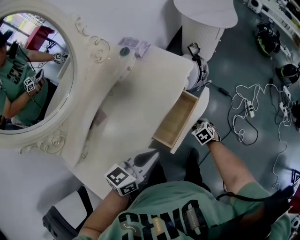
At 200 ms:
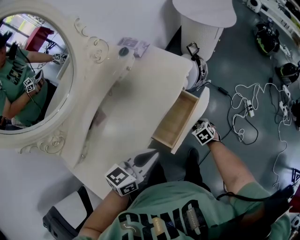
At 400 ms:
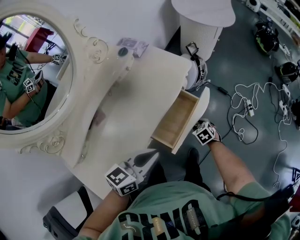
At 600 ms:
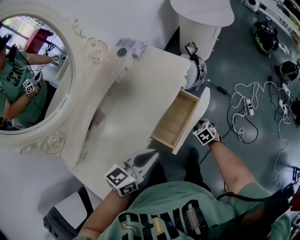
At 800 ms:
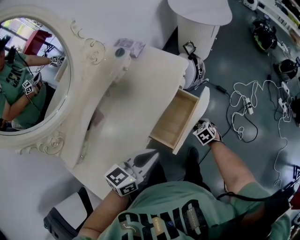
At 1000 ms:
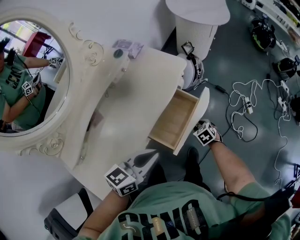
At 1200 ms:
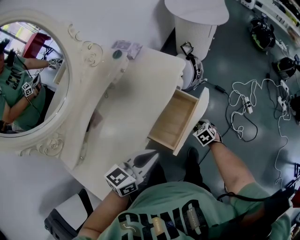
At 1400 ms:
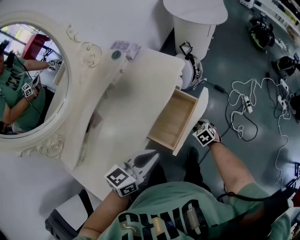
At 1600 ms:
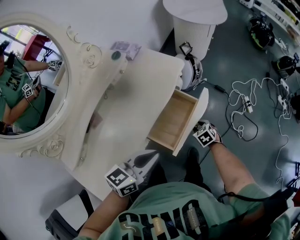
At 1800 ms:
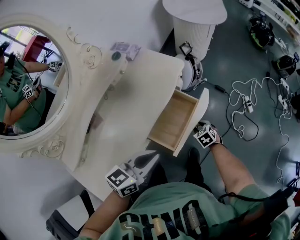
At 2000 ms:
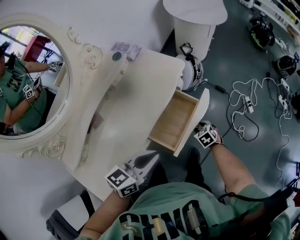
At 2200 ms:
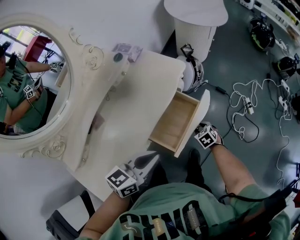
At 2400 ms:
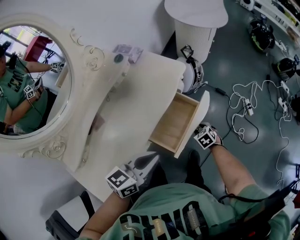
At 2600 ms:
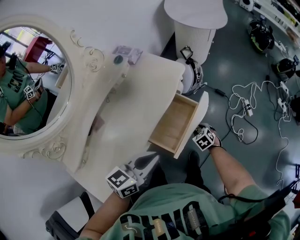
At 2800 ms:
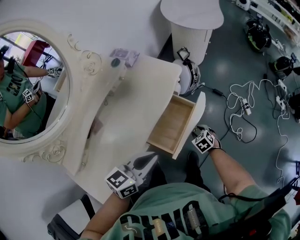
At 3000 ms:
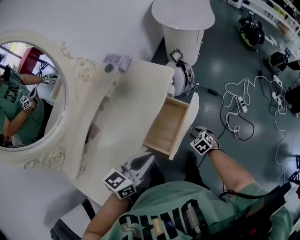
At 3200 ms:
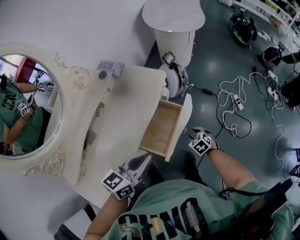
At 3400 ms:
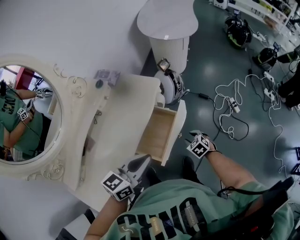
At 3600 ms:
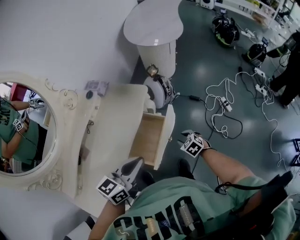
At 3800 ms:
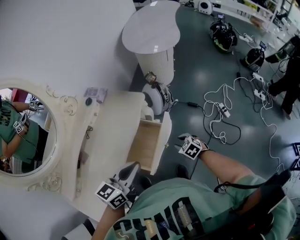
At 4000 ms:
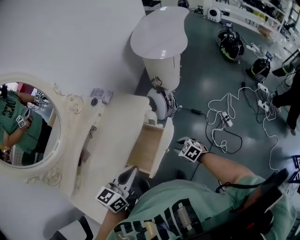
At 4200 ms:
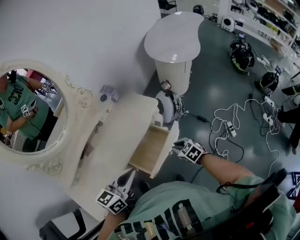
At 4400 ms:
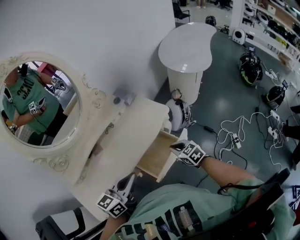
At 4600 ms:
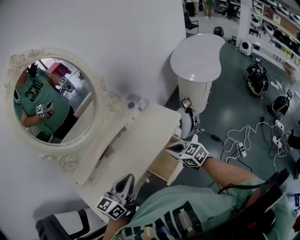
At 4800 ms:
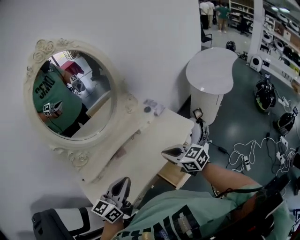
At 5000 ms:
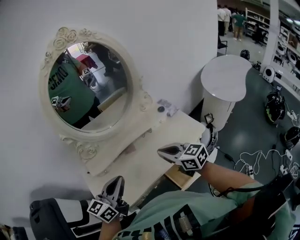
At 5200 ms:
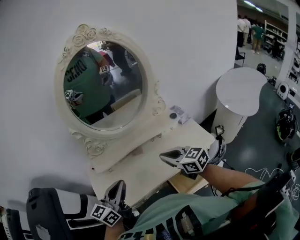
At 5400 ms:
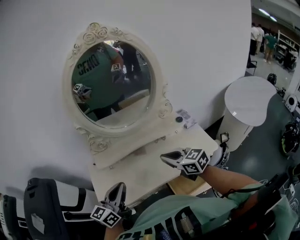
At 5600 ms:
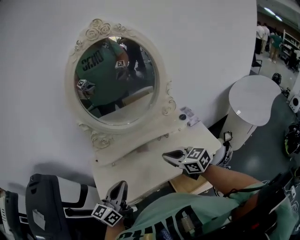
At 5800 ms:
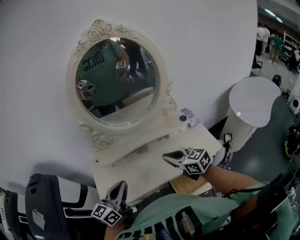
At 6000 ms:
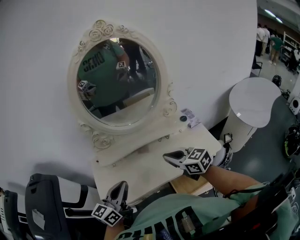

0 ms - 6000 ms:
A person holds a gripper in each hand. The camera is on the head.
0 ms - 1600 ms: There are only small adjustments of the grippers.
1600 ms - 3000 ms: There are only small adjustments of the grippers.
3000 ms - 4400 ms: The right gripper moves upward, roughly 20 cm, changes its angle by some 30 degrees, and closes its fingers. Meanwhile the left gripper shifts some 10 cm upward, and swivels some 20 degrees.
4400 ms - 6000 ms: The right gripper shifts by roughly 35 cm, and swivels approximately 40 degrees. The left gripper moves approximately 25 cm, and swivels roughly 40 degrees.

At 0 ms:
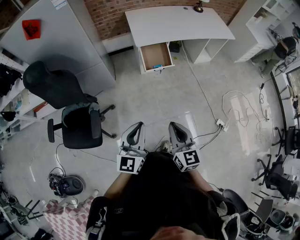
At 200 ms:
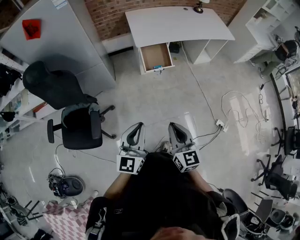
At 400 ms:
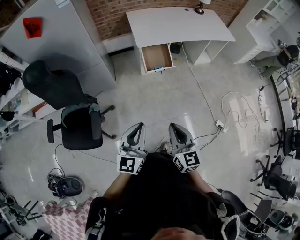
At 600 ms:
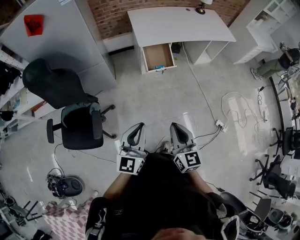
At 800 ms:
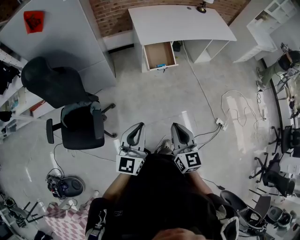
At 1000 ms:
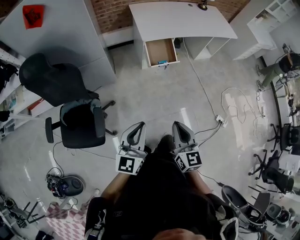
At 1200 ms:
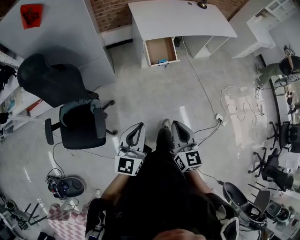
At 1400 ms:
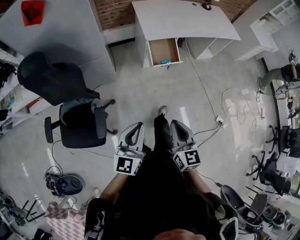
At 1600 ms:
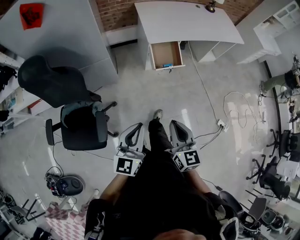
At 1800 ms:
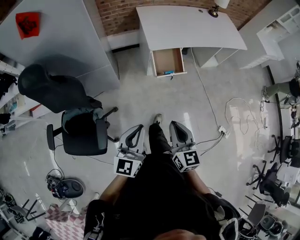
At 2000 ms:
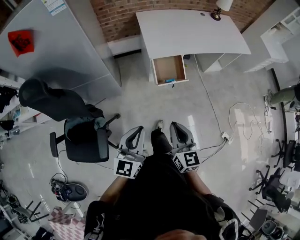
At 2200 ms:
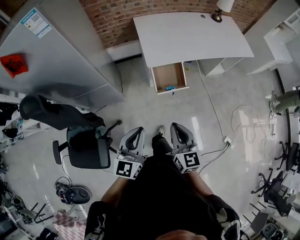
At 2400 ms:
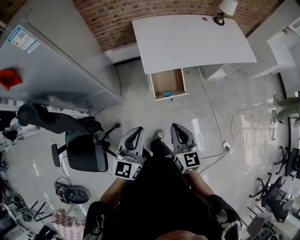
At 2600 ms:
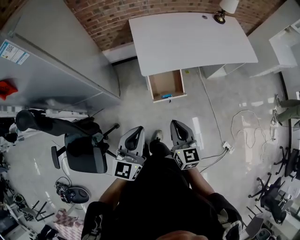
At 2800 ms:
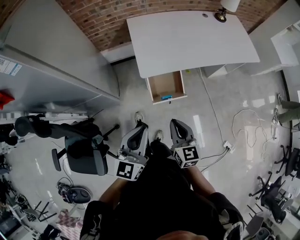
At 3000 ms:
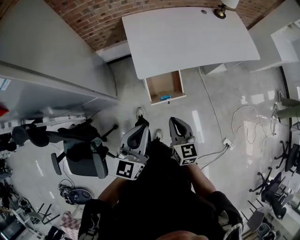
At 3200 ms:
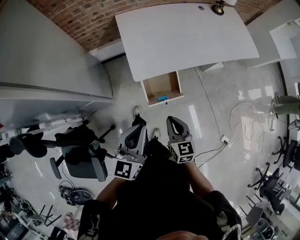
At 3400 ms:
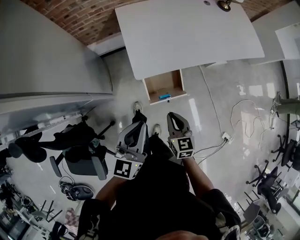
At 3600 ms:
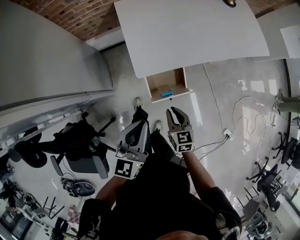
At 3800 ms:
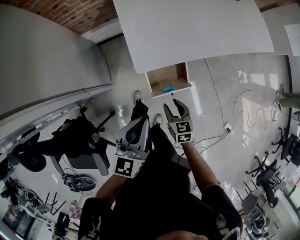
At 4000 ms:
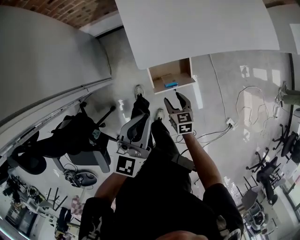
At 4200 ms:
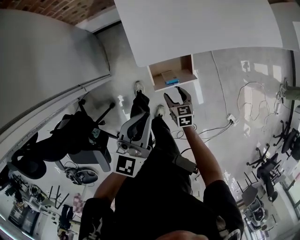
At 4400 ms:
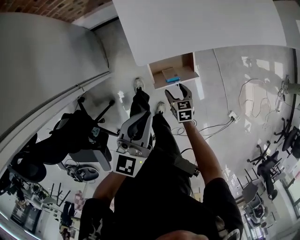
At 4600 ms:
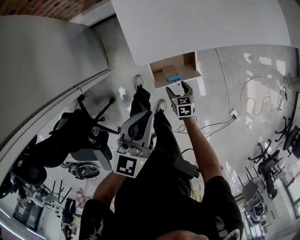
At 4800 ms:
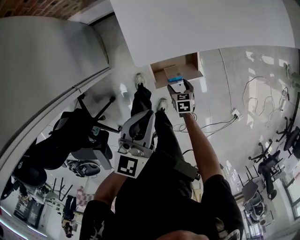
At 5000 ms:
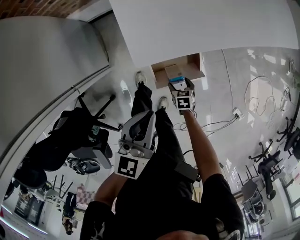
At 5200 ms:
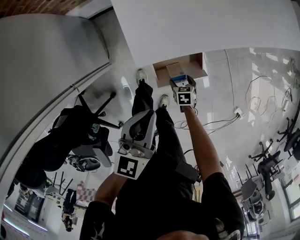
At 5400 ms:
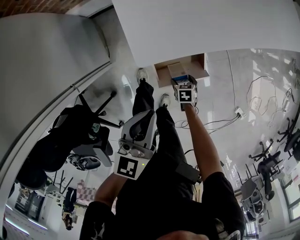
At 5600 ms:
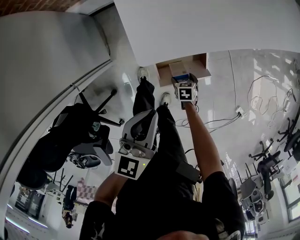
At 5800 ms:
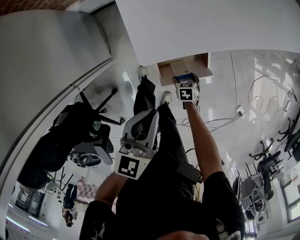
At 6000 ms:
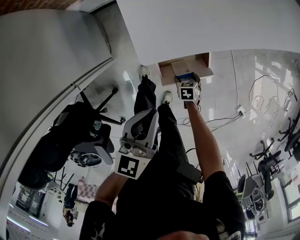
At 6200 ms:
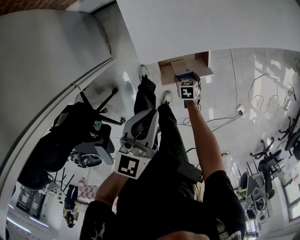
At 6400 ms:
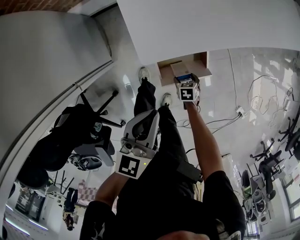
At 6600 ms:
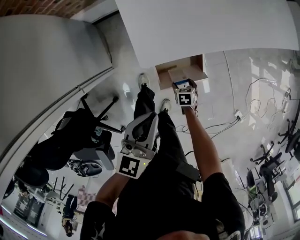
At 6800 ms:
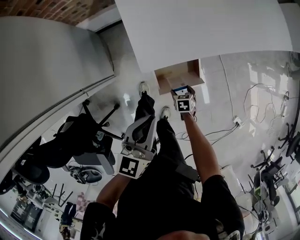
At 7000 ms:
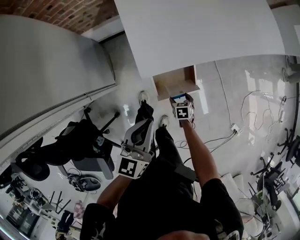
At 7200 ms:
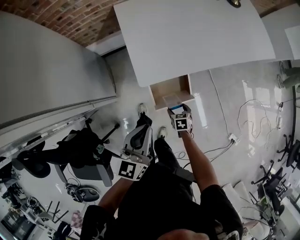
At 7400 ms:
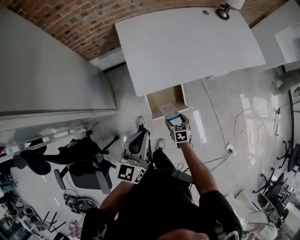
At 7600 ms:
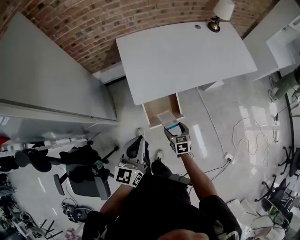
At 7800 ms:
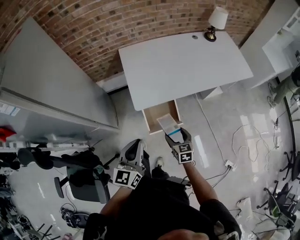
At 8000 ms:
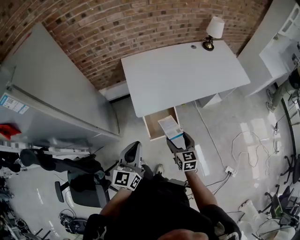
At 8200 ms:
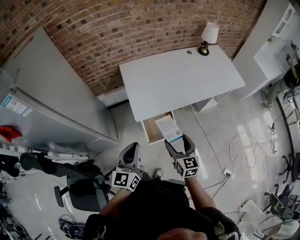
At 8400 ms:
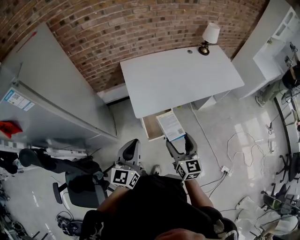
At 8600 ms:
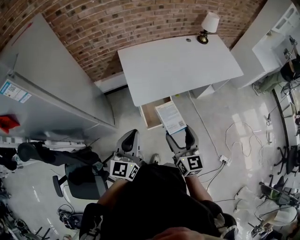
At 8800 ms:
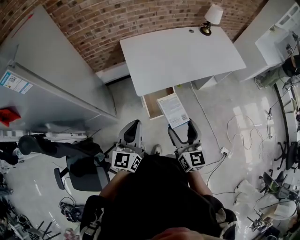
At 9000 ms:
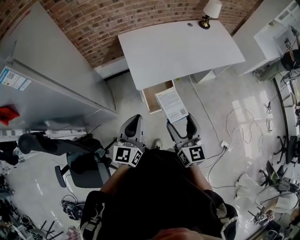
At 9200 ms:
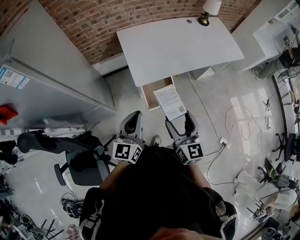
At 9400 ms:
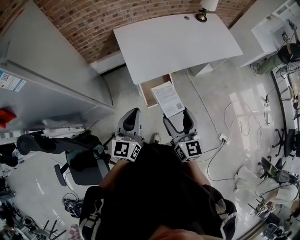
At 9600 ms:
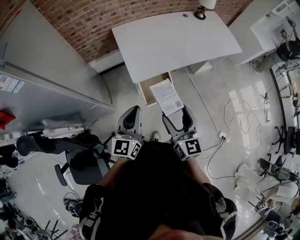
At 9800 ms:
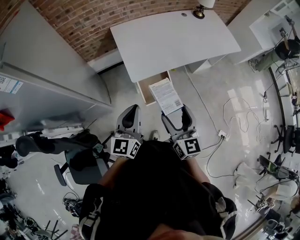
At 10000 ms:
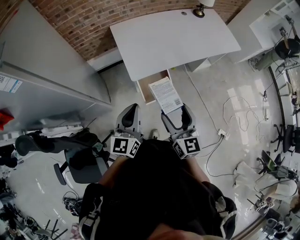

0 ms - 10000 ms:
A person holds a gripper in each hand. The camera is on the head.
0 ms - 1400 ms: The two grippers go roughly 10 cm to the left.
1400 ms - 2800 ms: Both grippers travel together forward, roughly 35 cm.
2800 ms - 4200 ms: The left gripper goes roughly 20 cm forward and downward. The right gripper heads downward and forward, covering approximately 35 cm, angles its fingers downward, by roughly 30 degrees, and opens up.
4200 ms - 5800 ms: The right gripper moves downward, roughly 20 cm, and rotates about 30 degrees; the left gripper is displaced downward by some 10 cm.
5800 ms - 7200 ms: Both grippers travel together upward, some 15 cm.
7200 ms - 8600 ms: The right gripper shifts roughly 50 cm upward, and tips its fingers upward by approximately 50 degrees. Meanwhile the left gripper heads upward and backward, covering some 20 cm.
8600 ms - 10000 ms: The grippers make only small movements.

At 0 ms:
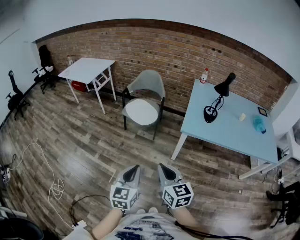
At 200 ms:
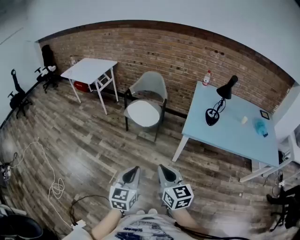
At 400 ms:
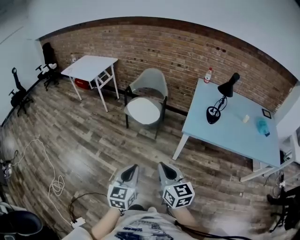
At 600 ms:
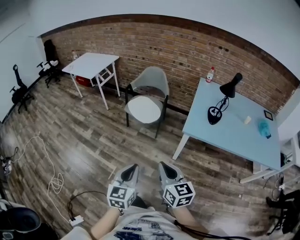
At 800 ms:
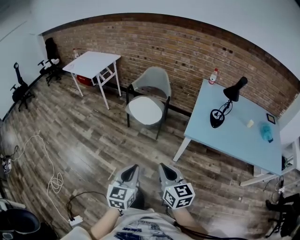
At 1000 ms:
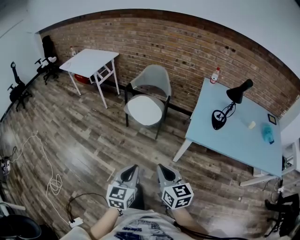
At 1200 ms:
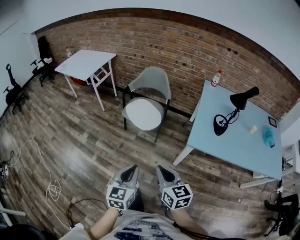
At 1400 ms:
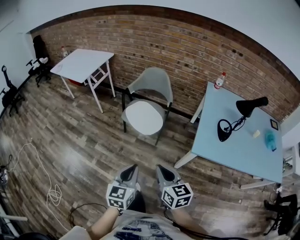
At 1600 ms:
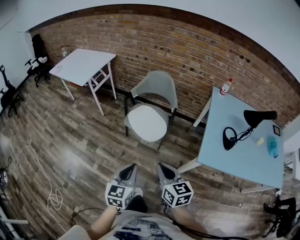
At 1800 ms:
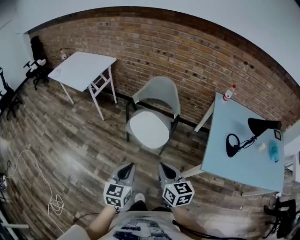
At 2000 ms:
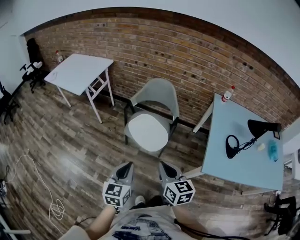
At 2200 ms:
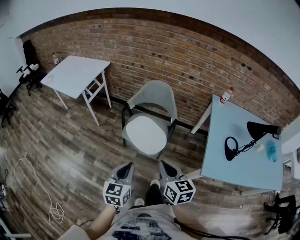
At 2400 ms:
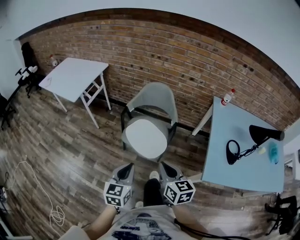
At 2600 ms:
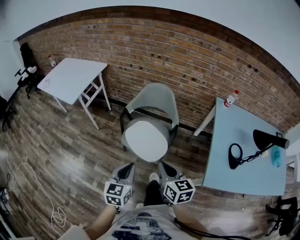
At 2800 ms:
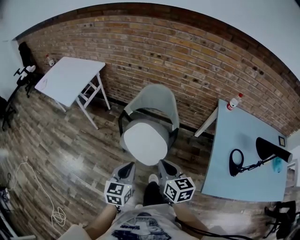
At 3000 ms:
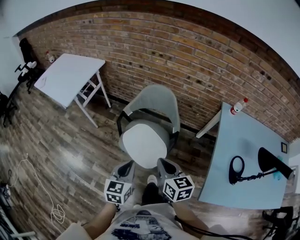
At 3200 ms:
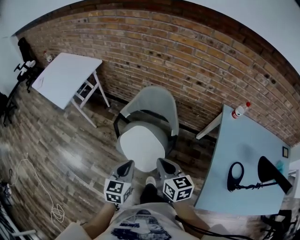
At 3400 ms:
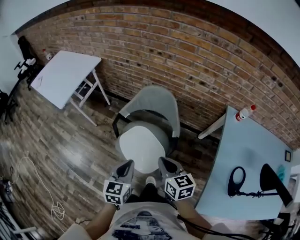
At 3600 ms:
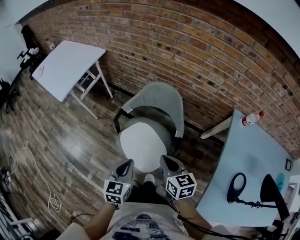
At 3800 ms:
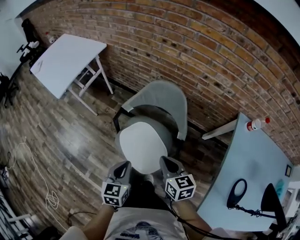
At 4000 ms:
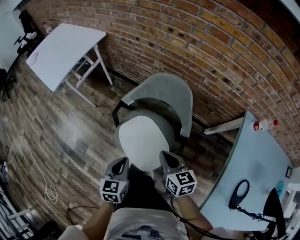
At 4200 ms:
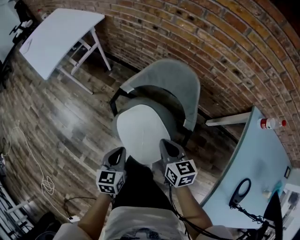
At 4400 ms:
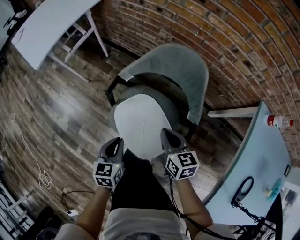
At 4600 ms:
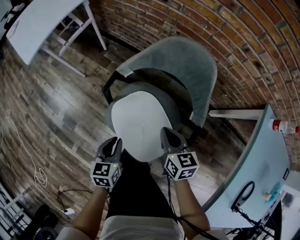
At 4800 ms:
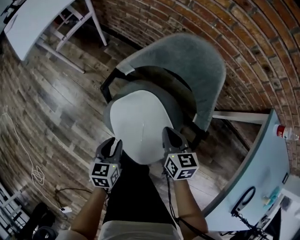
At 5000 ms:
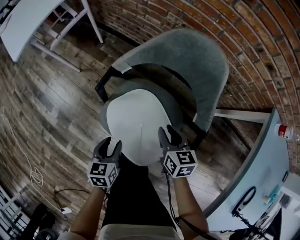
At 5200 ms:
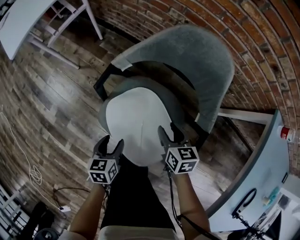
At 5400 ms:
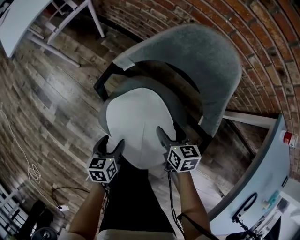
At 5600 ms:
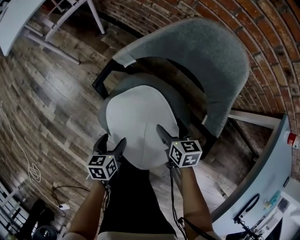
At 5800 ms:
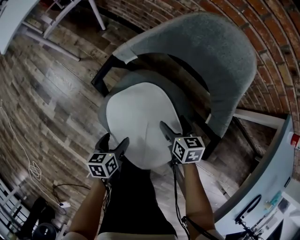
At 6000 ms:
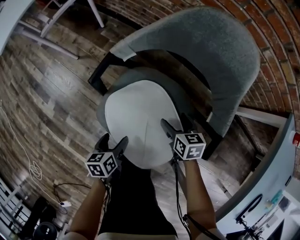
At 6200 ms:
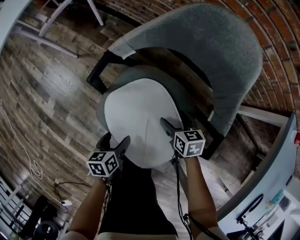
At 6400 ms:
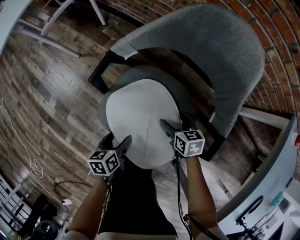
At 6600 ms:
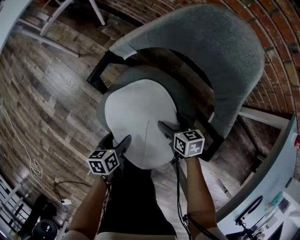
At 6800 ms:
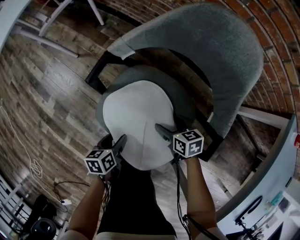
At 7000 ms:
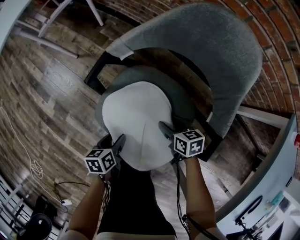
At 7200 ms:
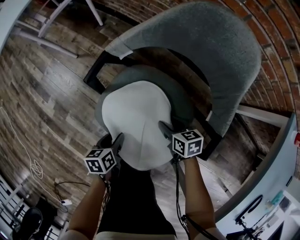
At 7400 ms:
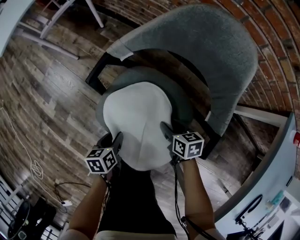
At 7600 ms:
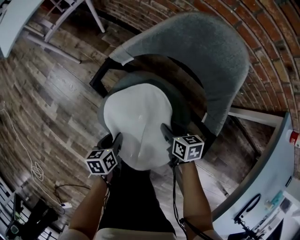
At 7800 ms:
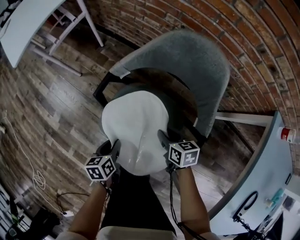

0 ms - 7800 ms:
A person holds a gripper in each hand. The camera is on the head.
0 ms - 1600 ms: Both grippers move forward, about 30 cm.
1600 ms - 3200 ms: Both grippers travel together forward, roughly 35 cm.
3200 ms - 4600 ms: The grippers both shift downward and forward by roughly 35 cm. The left gripper rotates about 20 degrees.
4600 ms - 6200 ms: The grippers both shift downward by some 20 cm. The left gripper swivels roughly 30 degrees, and opens, while the right gripper opens.
6200 ms - 7800 ms: Both grippers travel together upward, some 10 cm. The left gripper closes up. Meanwhile the right gripper closes.
